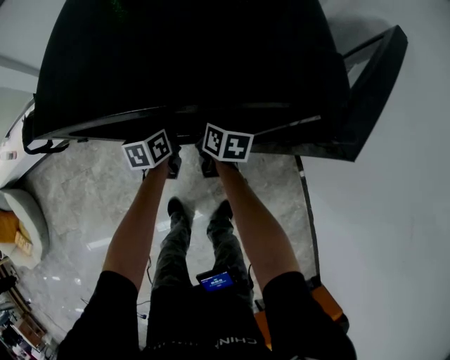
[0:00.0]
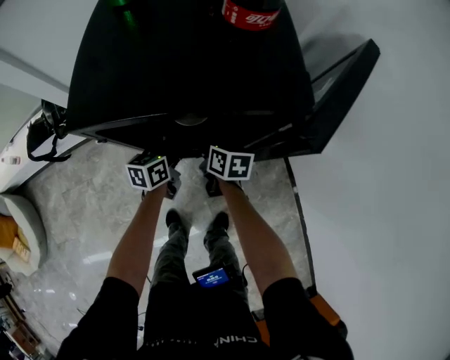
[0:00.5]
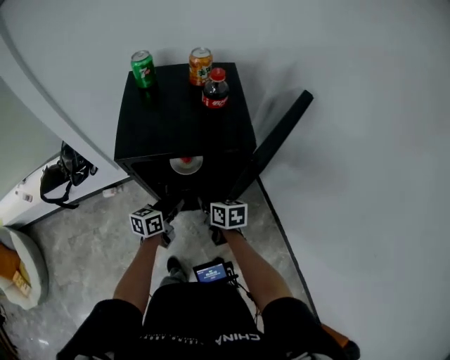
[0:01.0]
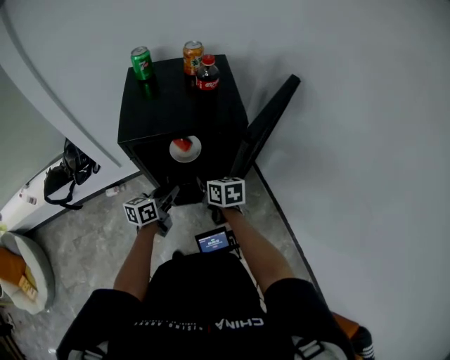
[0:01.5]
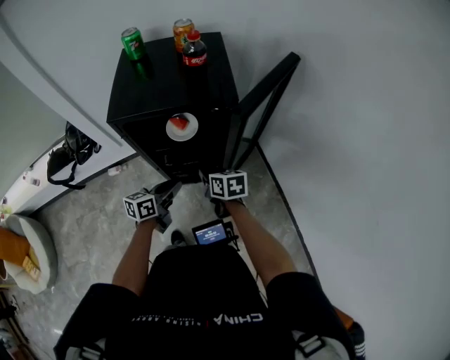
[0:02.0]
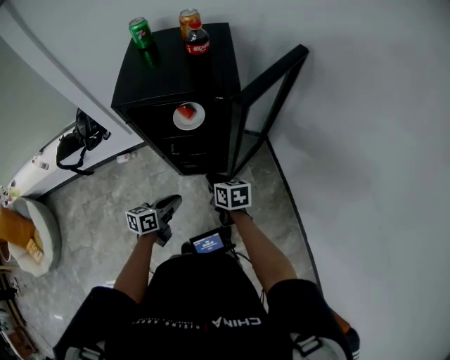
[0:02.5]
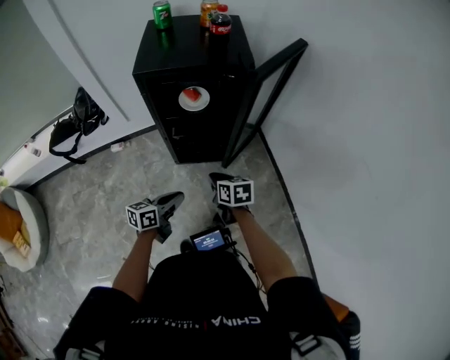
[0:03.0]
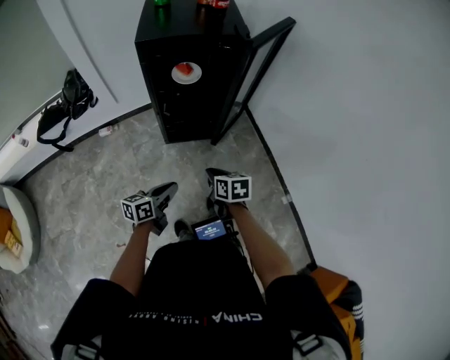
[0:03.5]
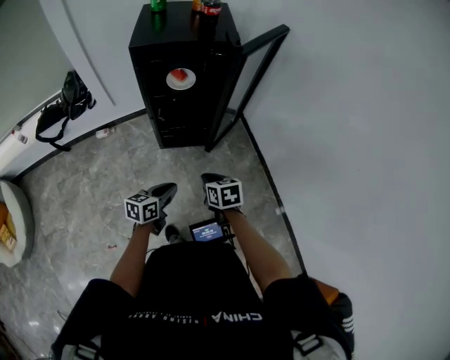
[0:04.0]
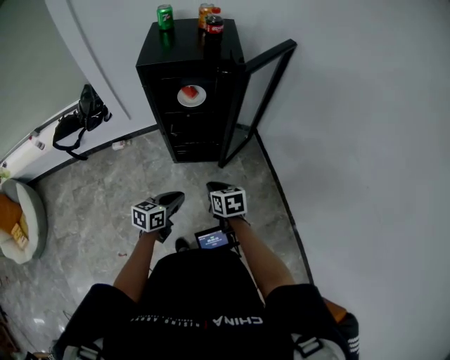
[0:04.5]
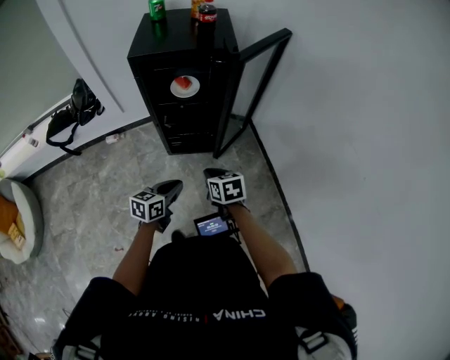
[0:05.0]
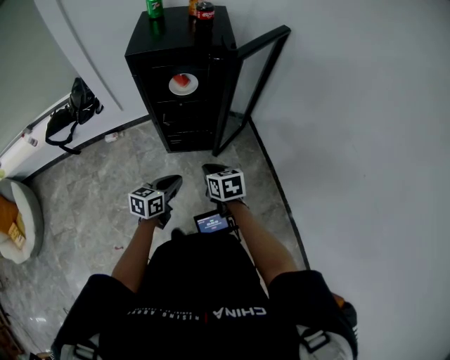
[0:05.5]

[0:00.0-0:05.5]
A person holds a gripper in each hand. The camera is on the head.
0:00.0 to 0:02.0: Both grippers move backward and upward, roughly 25 cm. The left gripper changes its angle by some 30 degrees.
0:02.0 to 0:03.5: Both grippers travel together backward, roughly 30 cm.
0:03.5 to 0:05.5: The left gripper travels to the right and forward by some 10 cm, while the right gripper ends up approximately 5 cm from where it was.

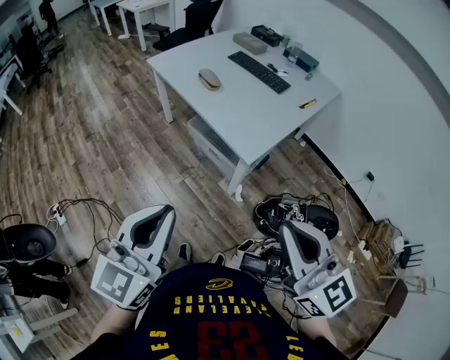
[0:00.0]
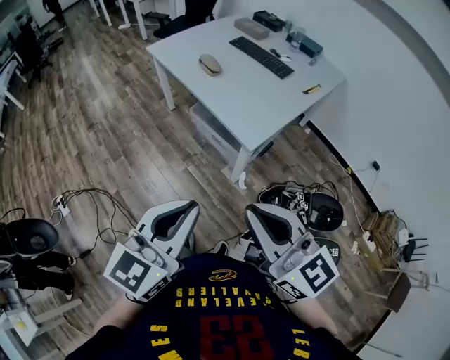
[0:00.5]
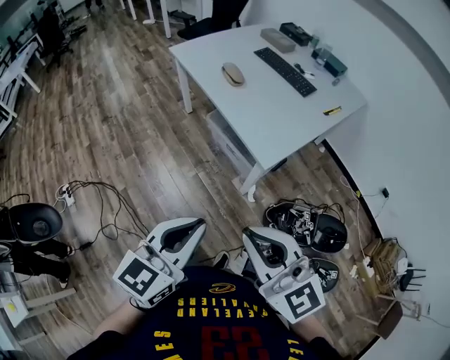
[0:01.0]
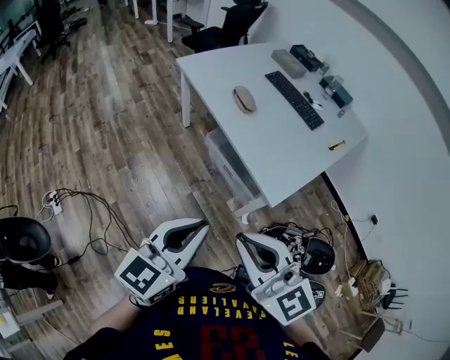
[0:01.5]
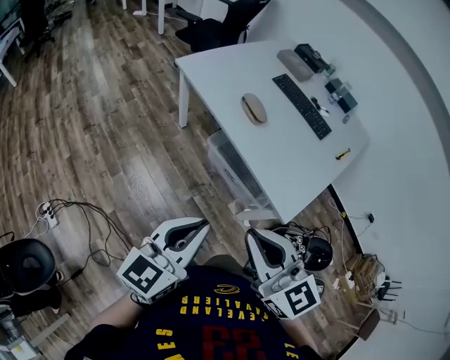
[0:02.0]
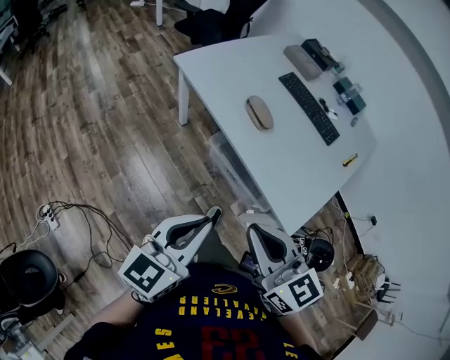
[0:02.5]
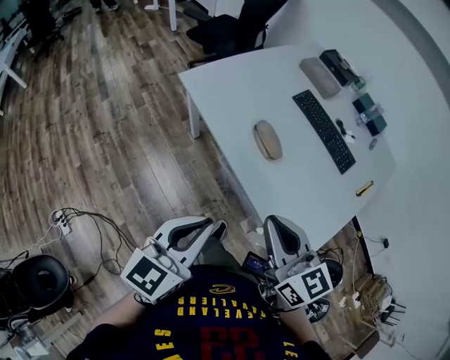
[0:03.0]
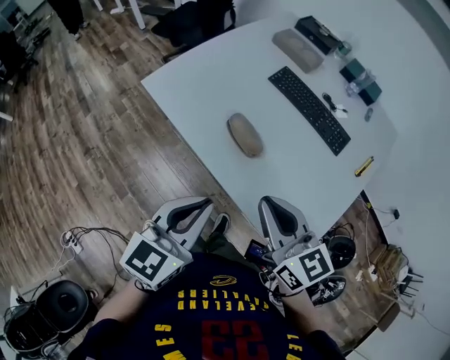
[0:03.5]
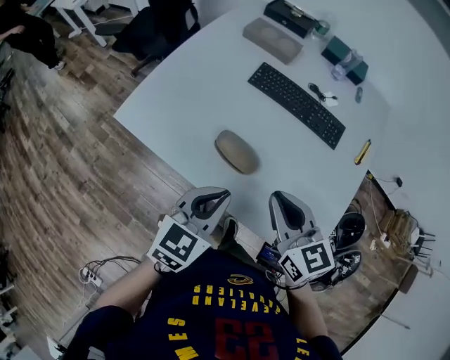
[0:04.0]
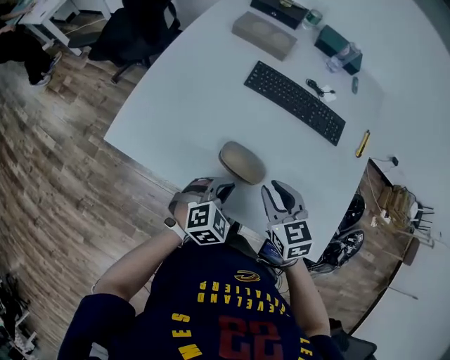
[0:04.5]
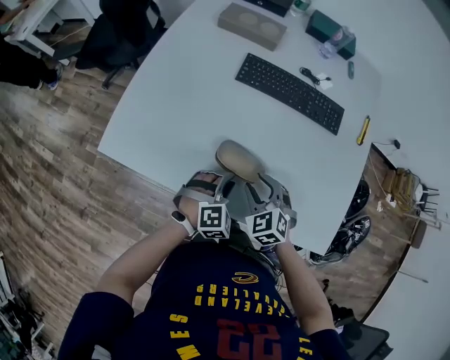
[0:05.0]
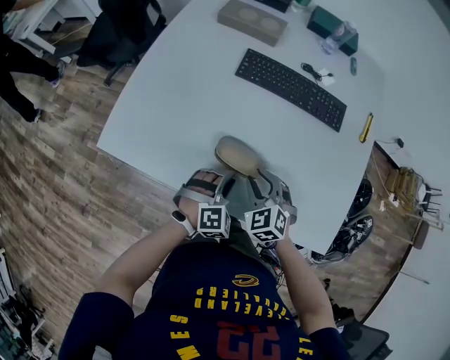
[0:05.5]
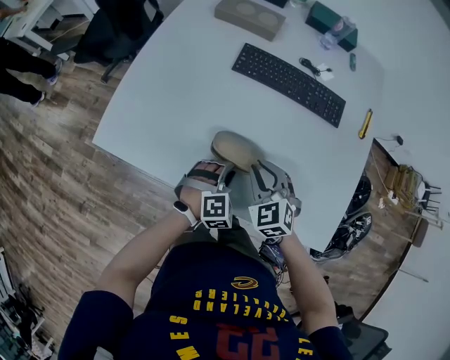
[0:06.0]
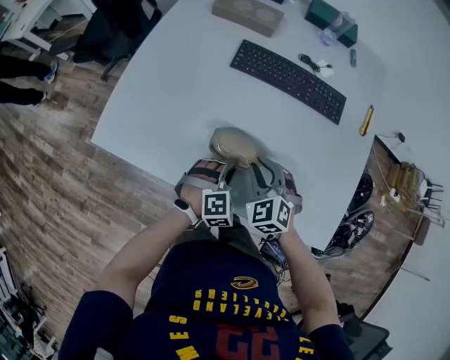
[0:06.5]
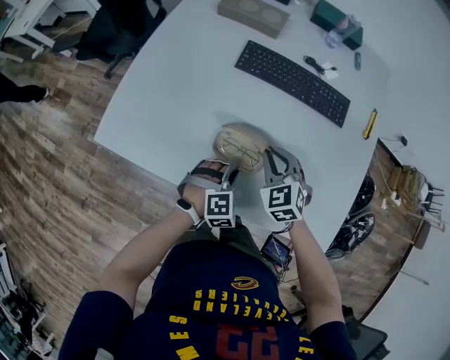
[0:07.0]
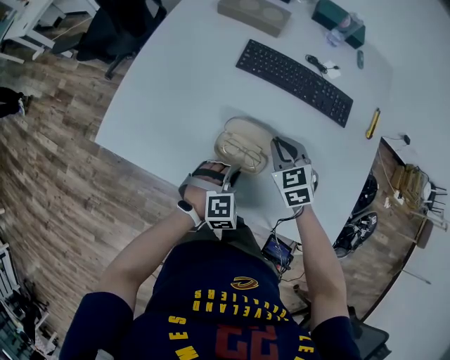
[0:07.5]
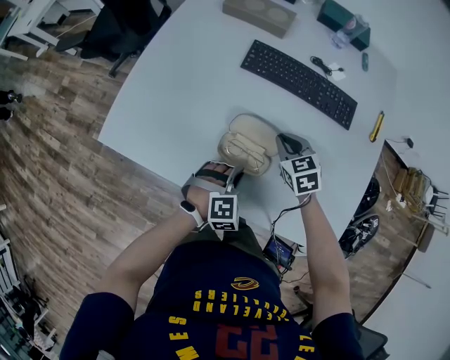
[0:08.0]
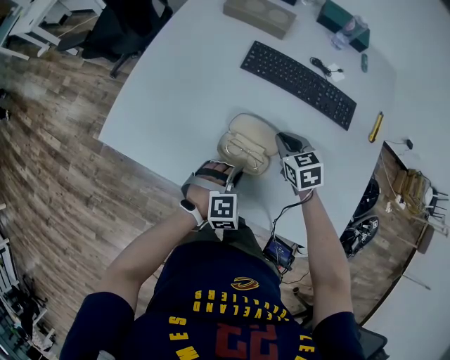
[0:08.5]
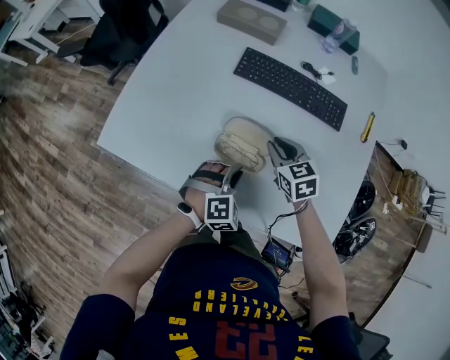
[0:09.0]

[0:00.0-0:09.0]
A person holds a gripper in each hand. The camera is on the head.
0:00.0 to 0:02.0: The grippers both shift forward and to the left by roughly 30 cm.
0:02.0 to 0:04.5: The two grippers travel together, roughly 50 cm. The left gripper angles its fingers downward, by some 40 degrees. Meanwhile the right gripper swivels about 50 degrees.
0:04.5 to 0:07.0: The left gripper moves downward, some 10 cm, and swivels about 20 degrees. The right gripper heads downward and forward, covering about 10 cm, turns by some 20 degrees, and opens and closes again.
0:07.0 to 0:09.0: The right gripper rotates some 30 degrees.

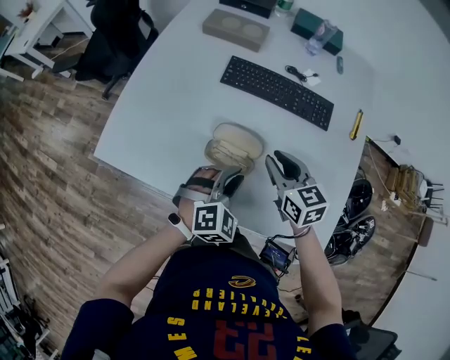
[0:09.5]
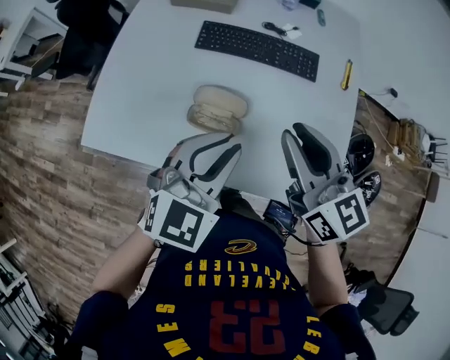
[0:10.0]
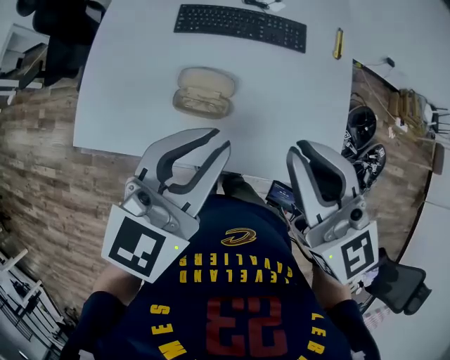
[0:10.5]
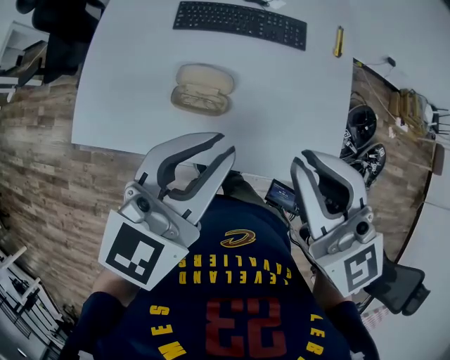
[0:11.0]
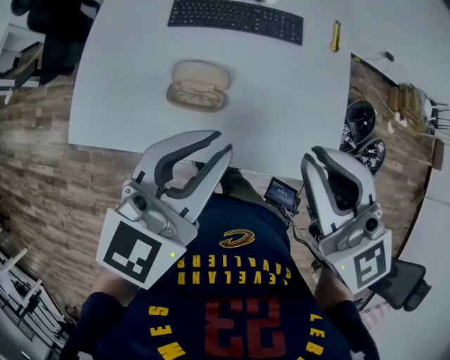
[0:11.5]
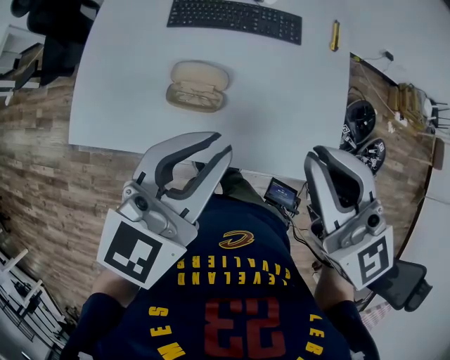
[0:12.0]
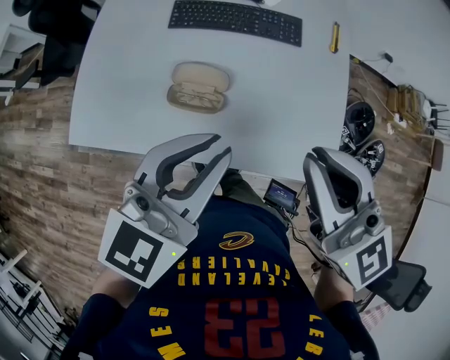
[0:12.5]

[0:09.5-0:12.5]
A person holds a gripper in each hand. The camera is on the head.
0:09.5 to 0:11.0: The left gripper goes about 25 cm upward, and swivels about 50 degrees. The right gripper travels upward and backward by approximately 30 cm, and rotates about 30 degrees.
0:11.0 to 0:12.5: The grippers move only a little.

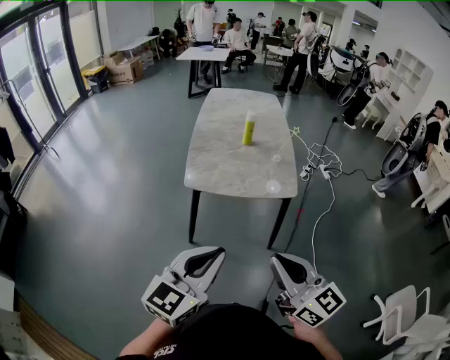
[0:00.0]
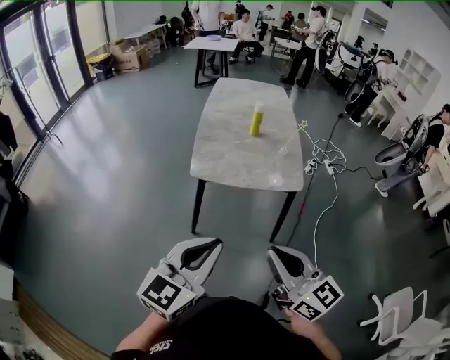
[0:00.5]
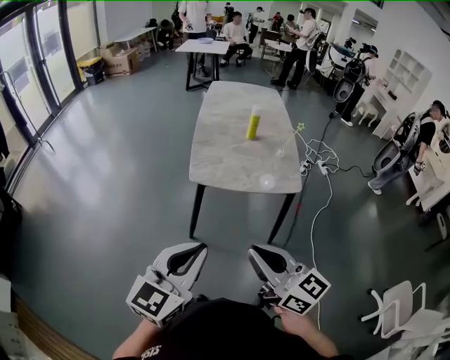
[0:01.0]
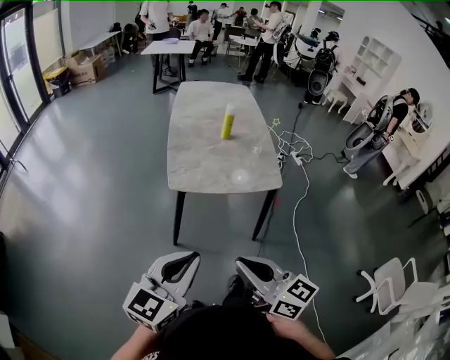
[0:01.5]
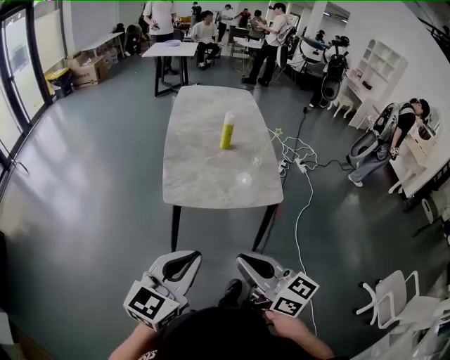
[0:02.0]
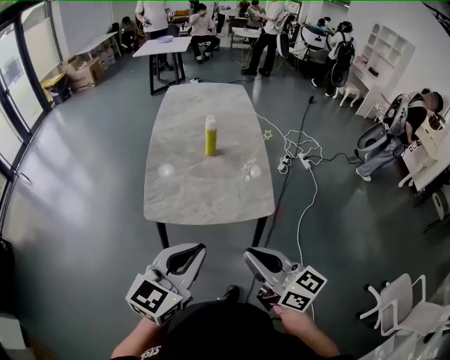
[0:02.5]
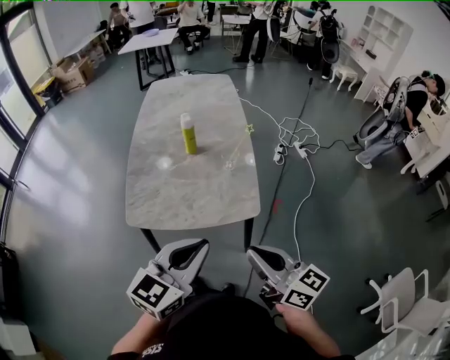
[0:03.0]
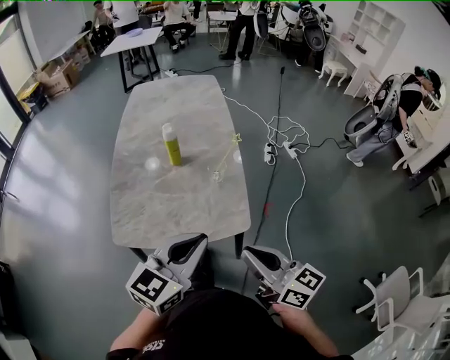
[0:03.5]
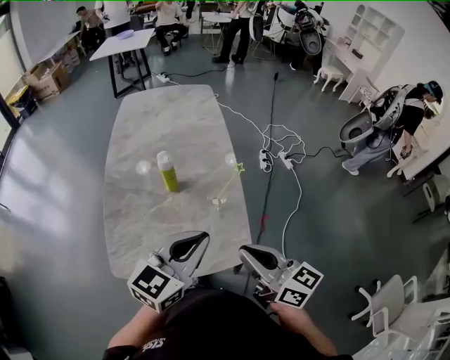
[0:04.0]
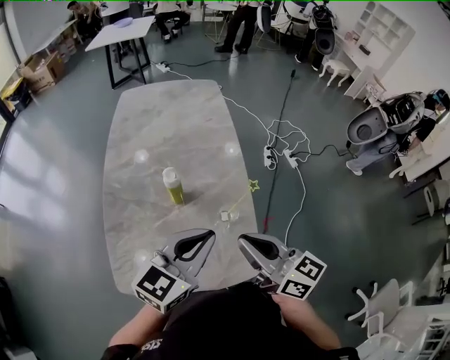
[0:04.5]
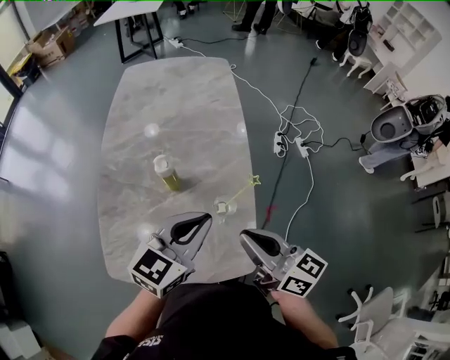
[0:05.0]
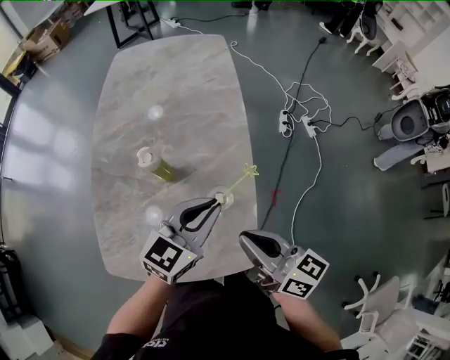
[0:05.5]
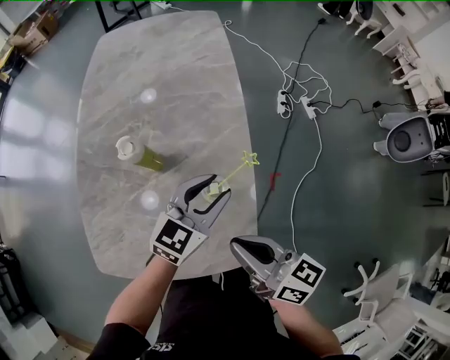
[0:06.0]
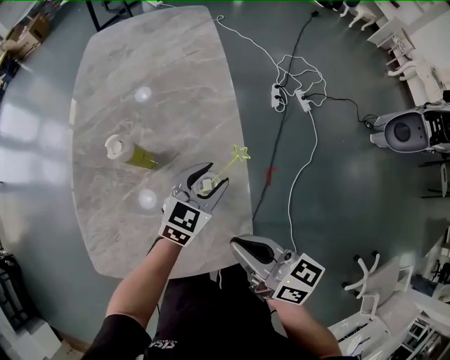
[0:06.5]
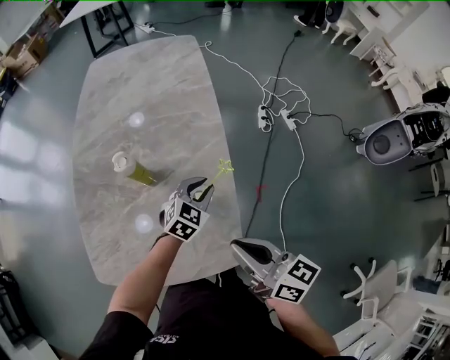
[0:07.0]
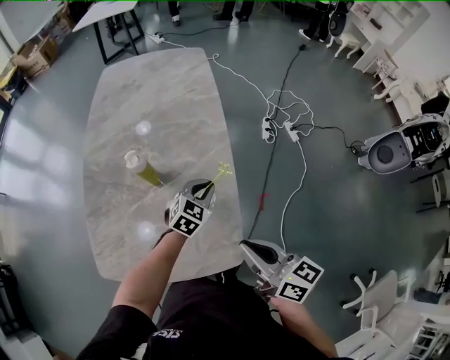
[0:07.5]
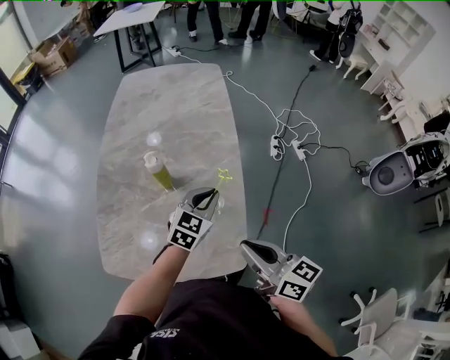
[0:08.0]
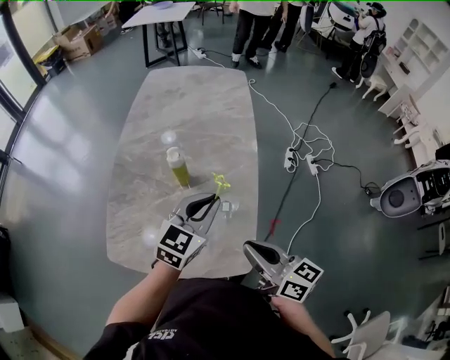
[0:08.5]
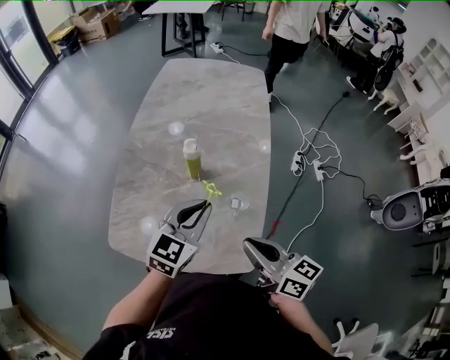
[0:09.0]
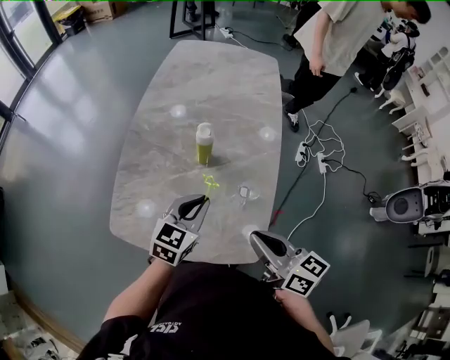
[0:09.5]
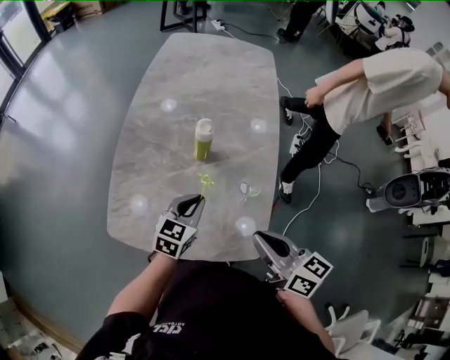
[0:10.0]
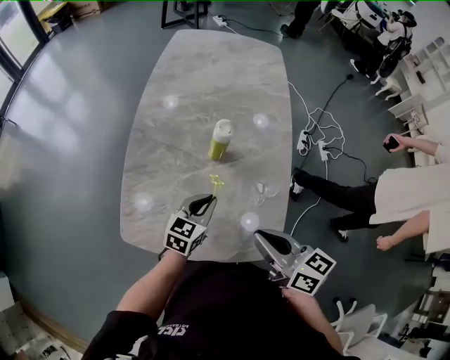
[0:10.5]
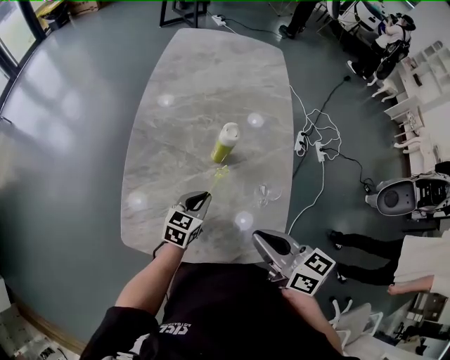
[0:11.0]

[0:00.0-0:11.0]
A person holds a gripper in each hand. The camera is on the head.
0:00.0 to 0:02.0: The two grippers go about 15 cm forward and to the left.
0:02.0 to 0:03.5: Both grippers travel together to the right and forward, approximately 35 cm.
0:03.5 to 0:05.5: The grippers both shift forward by approximately 30 cm.
0:05.5 to 0:07.5: The left gripper heads downward, covering roughly 15 cm, swivels about 20 degrees, and opens, then closes once more, while the right gripper moves about 5 cm.
0:07.5 to 0:09.0: The left gripper goes roughly 25 cm upward, to the left and backward, and turns by about 30 degrees; the right gripper goes roughly 5 cm to the left.
0:09.0 to 0:11.0: The left gripper is displaced downward and to the left by about 25 cm. Meanwhile the right gripper travels to the left by some 10 cm.
